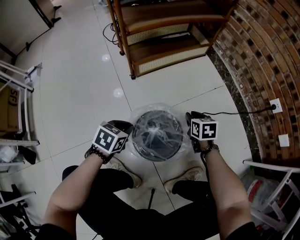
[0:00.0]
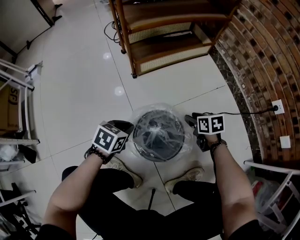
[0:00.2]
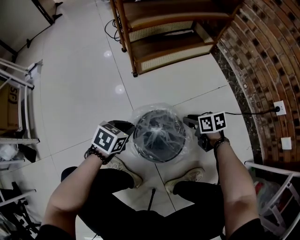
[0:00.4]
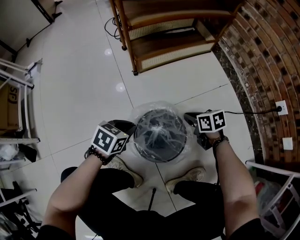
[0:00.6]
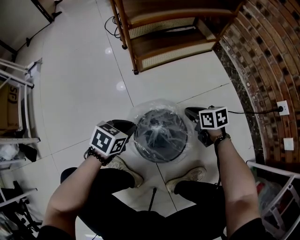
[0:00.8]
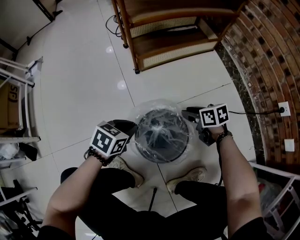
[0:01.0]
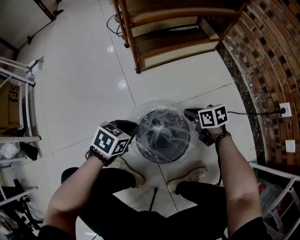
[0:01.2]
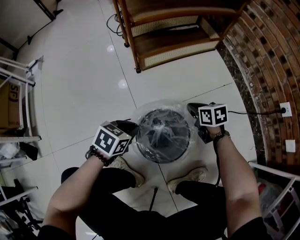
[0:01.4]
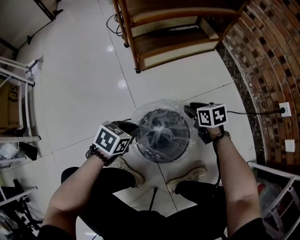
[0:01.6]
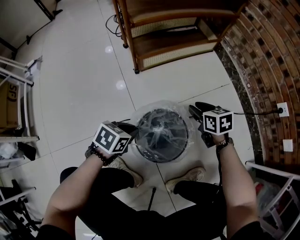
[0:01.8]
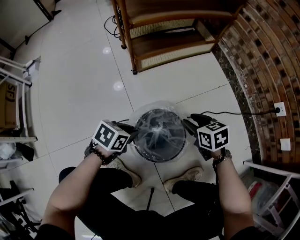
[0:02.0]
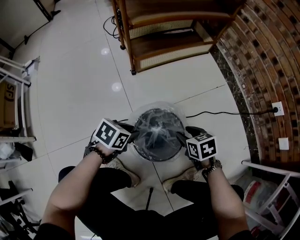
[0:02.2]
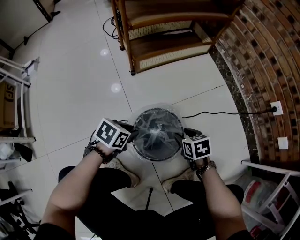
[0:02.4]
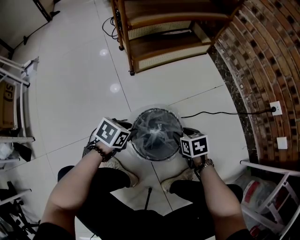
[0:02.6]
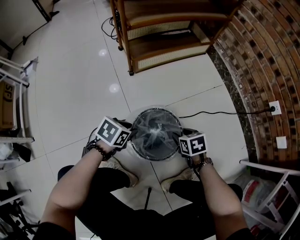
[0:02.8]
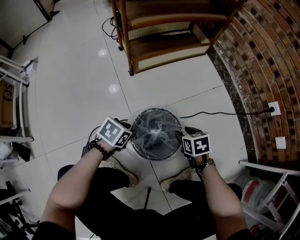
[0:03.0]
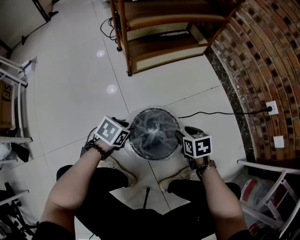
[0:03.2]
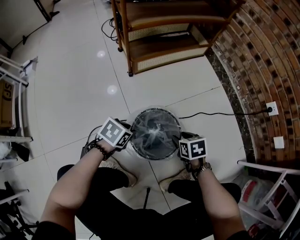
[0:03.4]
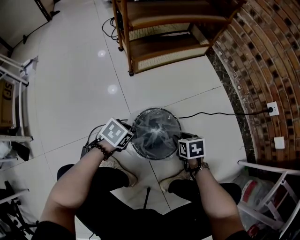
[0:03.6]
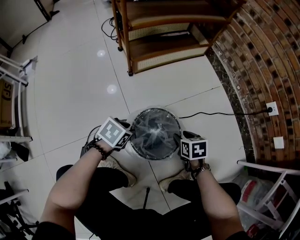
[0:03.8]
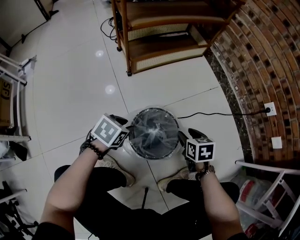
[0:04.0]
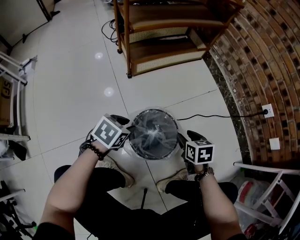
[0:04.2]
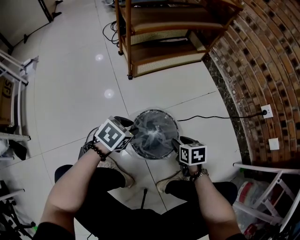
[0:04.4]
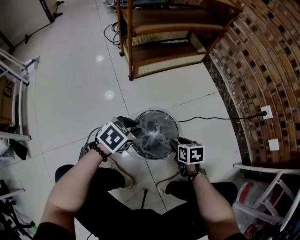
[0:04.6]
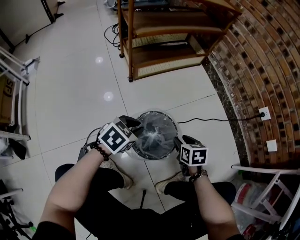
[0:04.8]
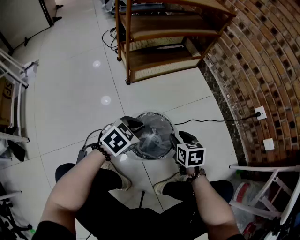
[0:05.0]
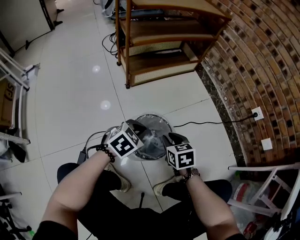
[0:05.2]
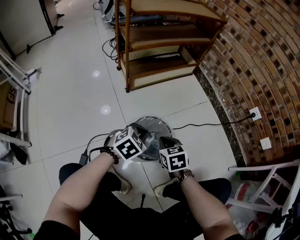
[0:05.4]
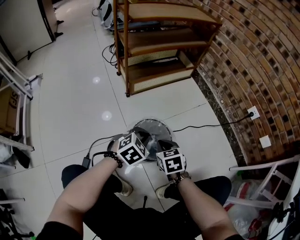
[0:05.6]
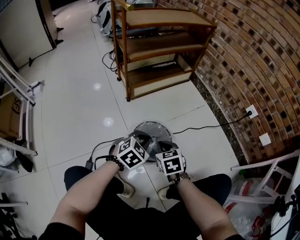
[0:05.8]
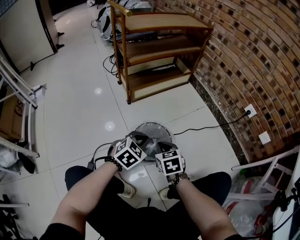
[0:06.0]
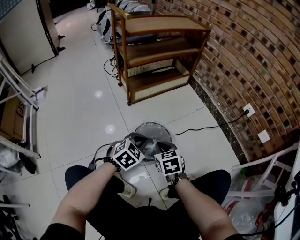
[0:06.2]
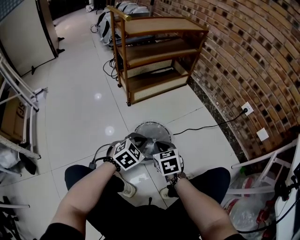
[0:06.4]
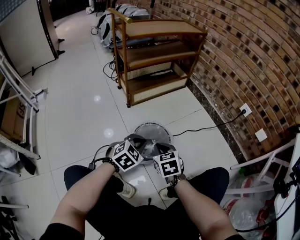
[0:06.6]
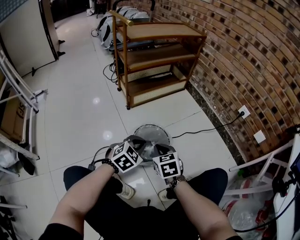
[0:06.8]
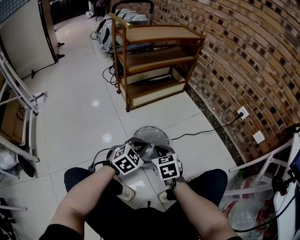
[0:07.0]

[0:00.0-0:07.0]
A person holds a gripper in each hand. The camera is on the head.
0:00.0 to 0:01.4: The right gripper changes place by approximately 5 cm, and opens and closes again.
0:01.4 to 0:02.8: The right gripper travels backward by roughly 10 cm, and opens up.
0:02.8 to 0:04.2: The left gripper changes place by about 5 cm. The right gripper moves up and down over roughly 5 cm, changing direction 2 times.
0:04.2 to 0:05.6: The right gripper travels to the left, backward and upward by approximately 10 cm, and closes up; the left gripper heads to the right, covering some 10 cm, changes its angle by about 30 degrees, and closes its fingers.
0:05.6 to 0:07.0: The right gripper travels upward by approximately 5 cm, while the left gripper goes roughly 5 cm backward.

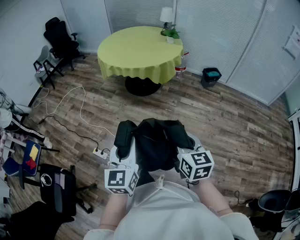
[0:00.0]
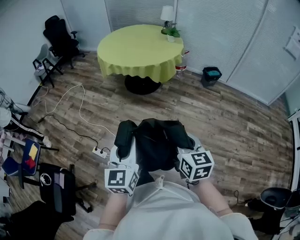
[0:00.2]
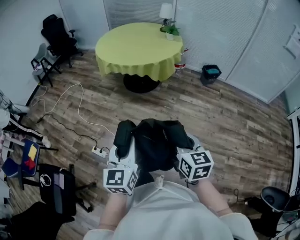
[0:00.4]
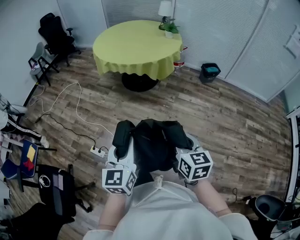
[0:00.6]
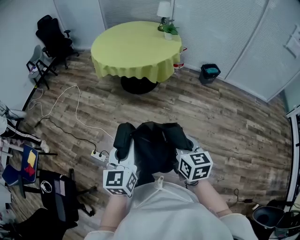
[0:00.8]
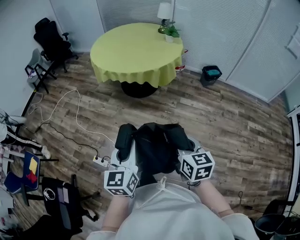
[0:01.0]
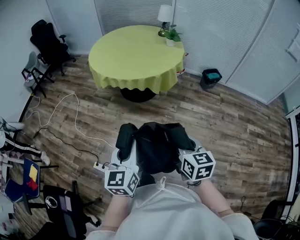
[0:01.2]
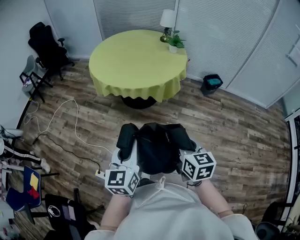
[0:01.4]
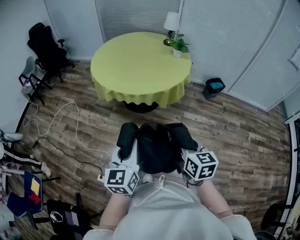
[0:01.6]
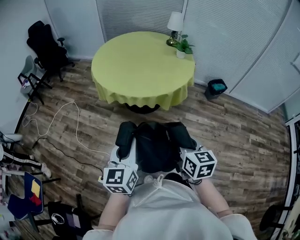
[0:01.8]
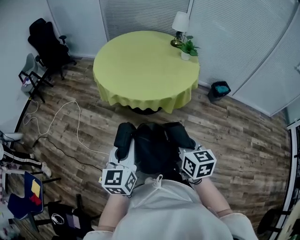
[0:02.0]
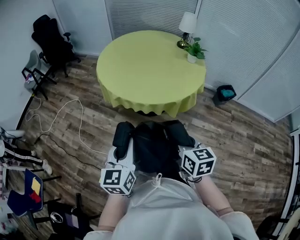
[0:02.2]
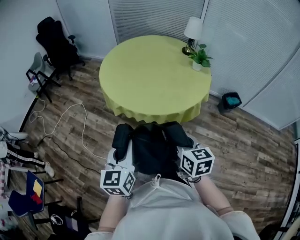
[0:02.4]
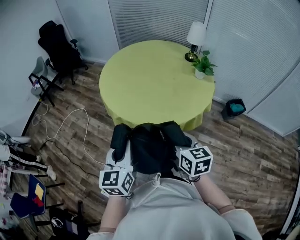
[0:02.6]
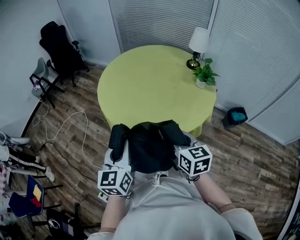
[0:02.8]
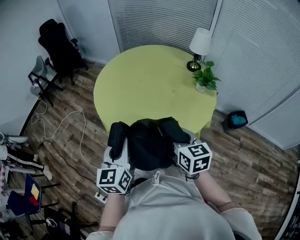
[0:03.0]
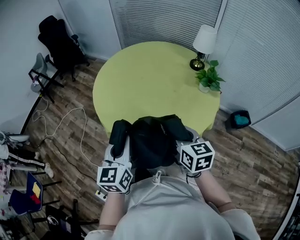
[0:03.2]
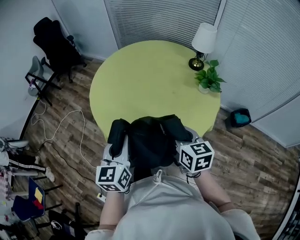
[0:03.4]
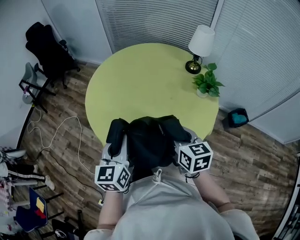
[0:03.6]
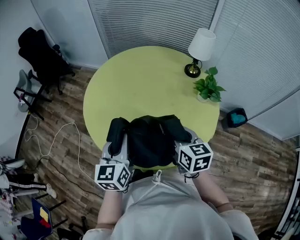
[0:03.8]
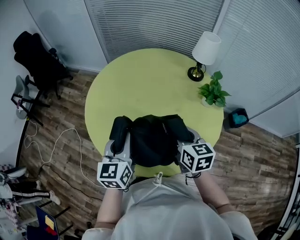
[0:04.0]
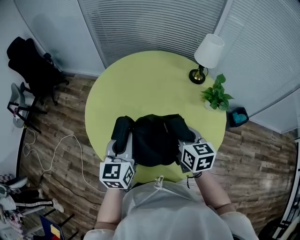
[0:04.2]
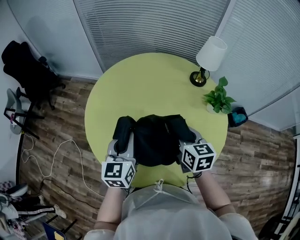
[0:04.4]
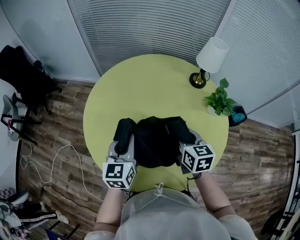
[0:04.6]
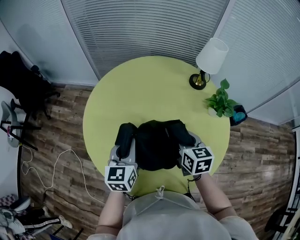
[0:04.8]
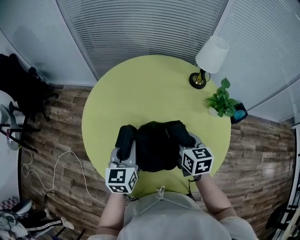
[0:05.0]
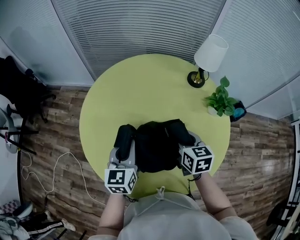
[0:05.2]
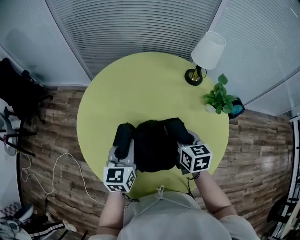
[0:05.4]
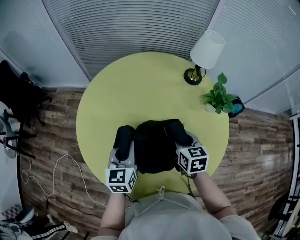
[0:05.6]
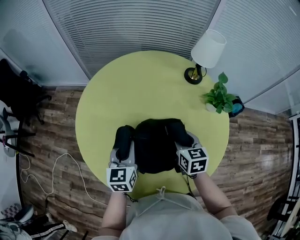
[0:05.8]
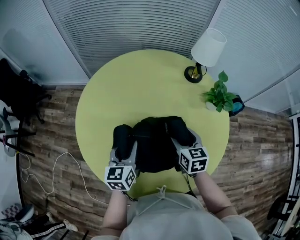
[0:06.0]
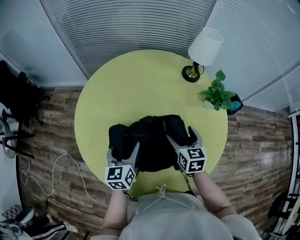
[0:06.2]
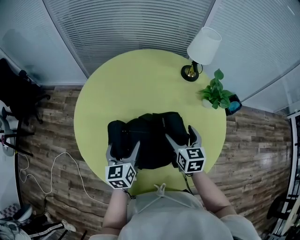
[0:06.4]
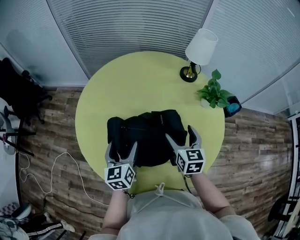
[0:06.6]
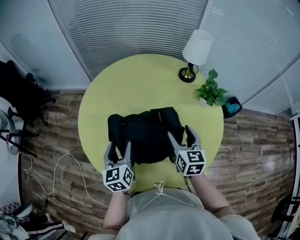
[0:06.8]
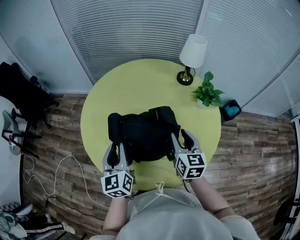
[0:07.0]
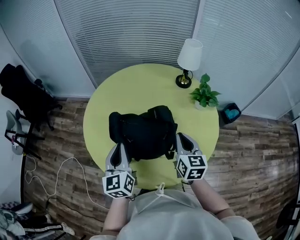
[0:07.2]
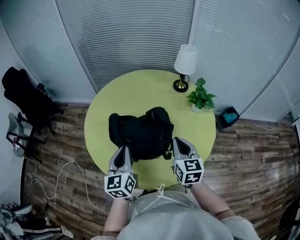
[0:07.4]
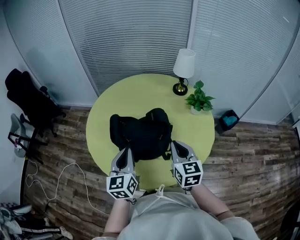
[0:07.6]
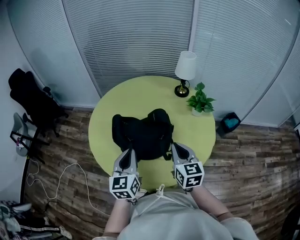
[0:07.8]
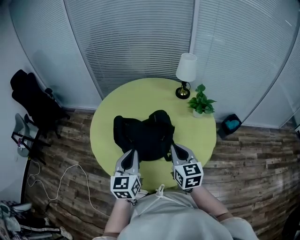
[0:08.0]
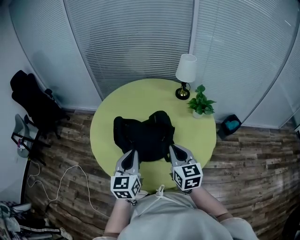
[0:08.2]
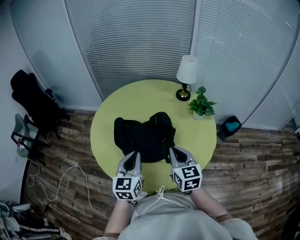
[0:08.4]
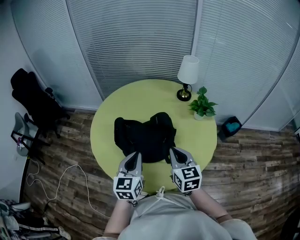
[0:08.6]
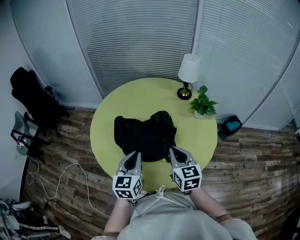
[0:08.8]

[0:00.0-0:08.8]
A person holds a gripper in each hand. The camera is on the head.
0:00.0 to 0:01.4: The grippers both shift forward by about 30 cm.
0:01.4 to 0:03.0: Both grippers are carried forward, roughly 50 cm.
0:03.0 to 0:04.4: The two grippers go about 35 cm forward.
0:04.4 to 0:05.8: The two grippers go roughly 10 cm downward and forward.
0:05.8 to 0:07.4: Both grippers move backward and upward, some 20 cm. The left gripper opens and closes again. Meanwhile the right gripper opens and closes again.
0:07.4 to 0:08.8: The left gripper moves approximately 5 cm.

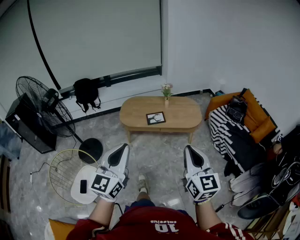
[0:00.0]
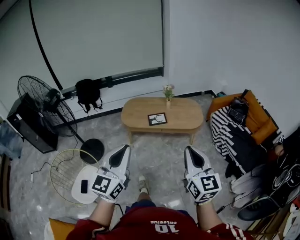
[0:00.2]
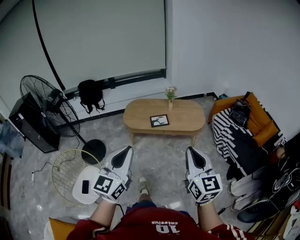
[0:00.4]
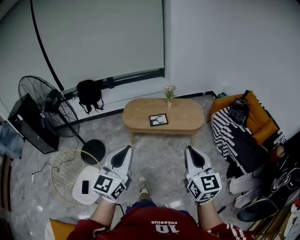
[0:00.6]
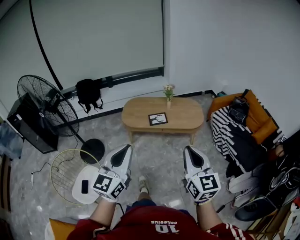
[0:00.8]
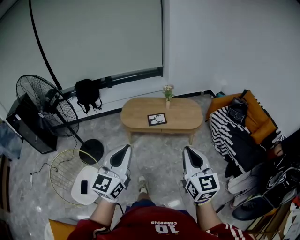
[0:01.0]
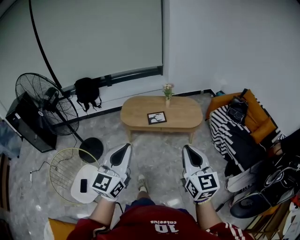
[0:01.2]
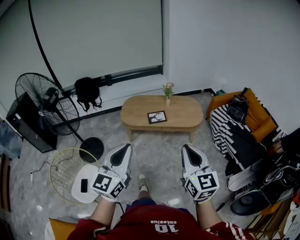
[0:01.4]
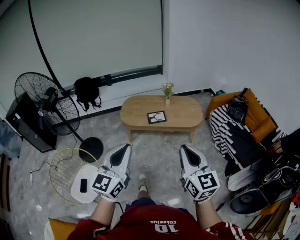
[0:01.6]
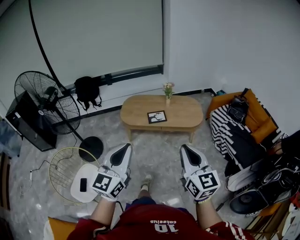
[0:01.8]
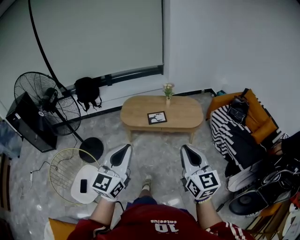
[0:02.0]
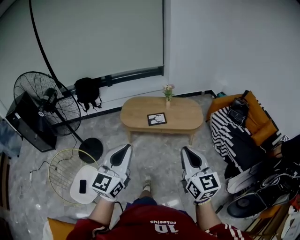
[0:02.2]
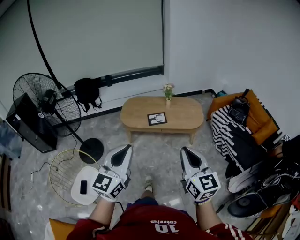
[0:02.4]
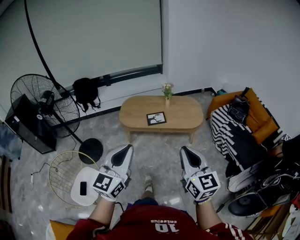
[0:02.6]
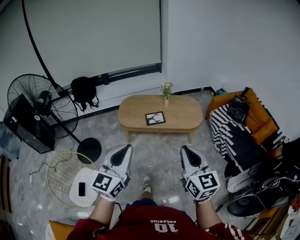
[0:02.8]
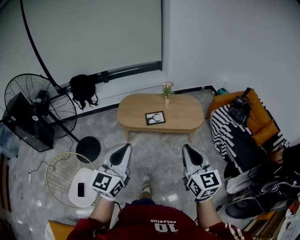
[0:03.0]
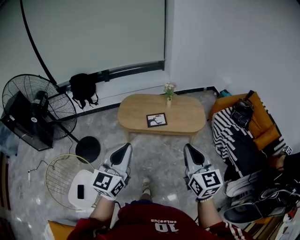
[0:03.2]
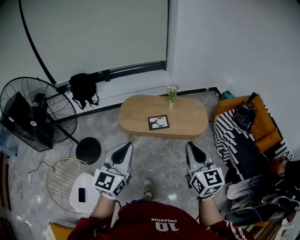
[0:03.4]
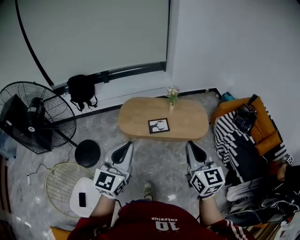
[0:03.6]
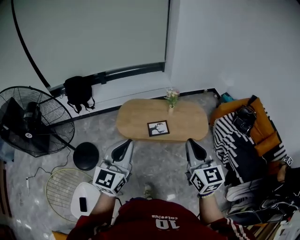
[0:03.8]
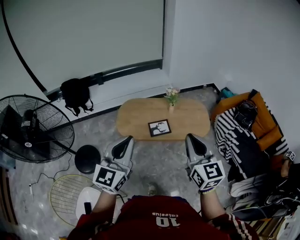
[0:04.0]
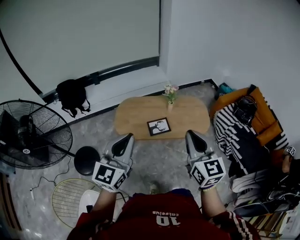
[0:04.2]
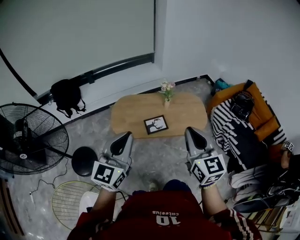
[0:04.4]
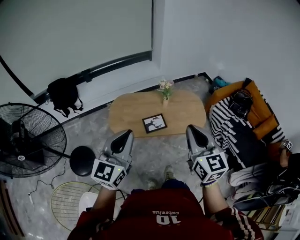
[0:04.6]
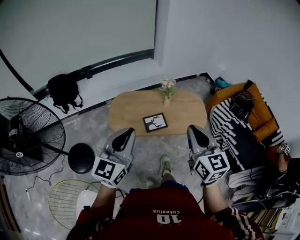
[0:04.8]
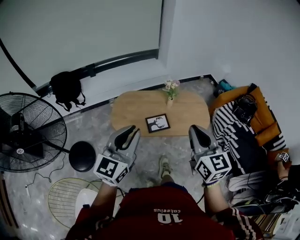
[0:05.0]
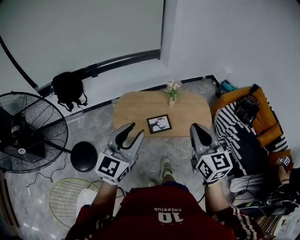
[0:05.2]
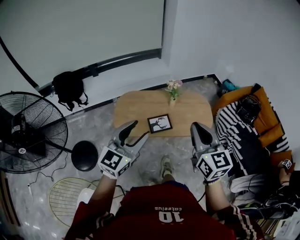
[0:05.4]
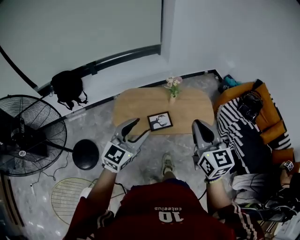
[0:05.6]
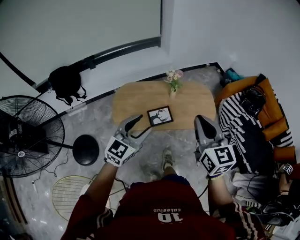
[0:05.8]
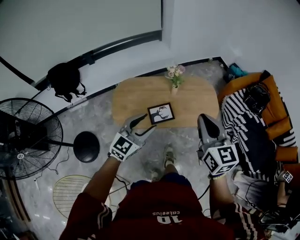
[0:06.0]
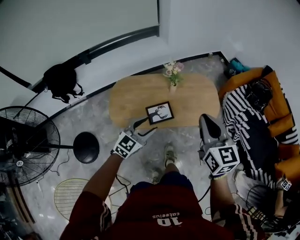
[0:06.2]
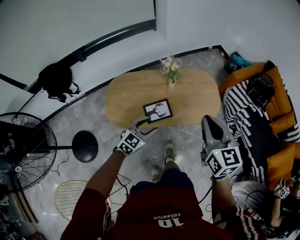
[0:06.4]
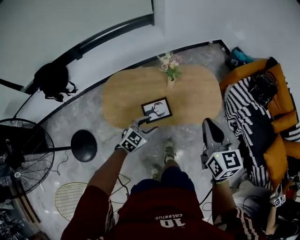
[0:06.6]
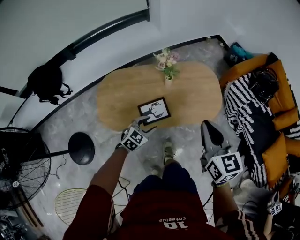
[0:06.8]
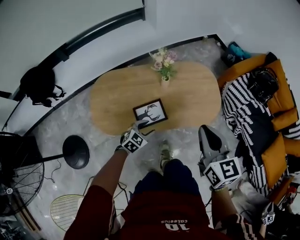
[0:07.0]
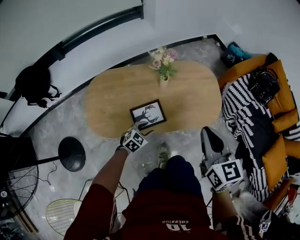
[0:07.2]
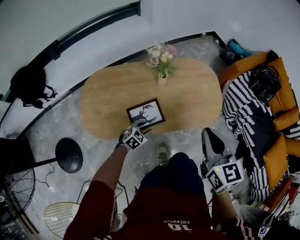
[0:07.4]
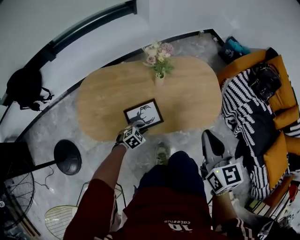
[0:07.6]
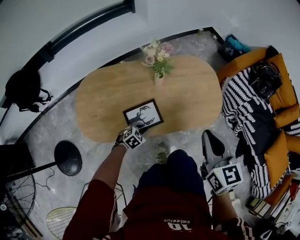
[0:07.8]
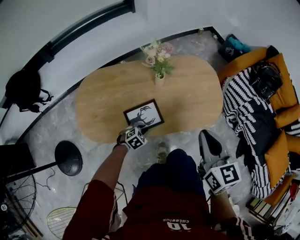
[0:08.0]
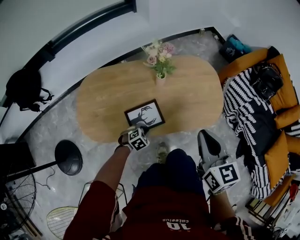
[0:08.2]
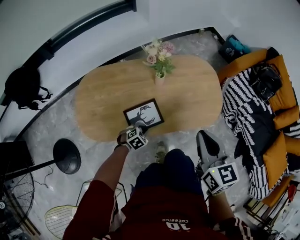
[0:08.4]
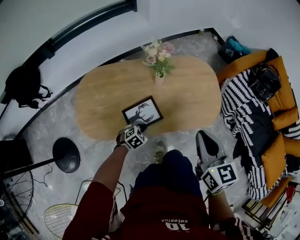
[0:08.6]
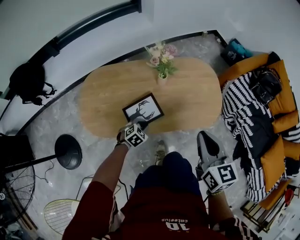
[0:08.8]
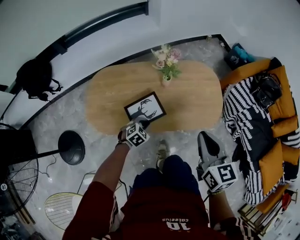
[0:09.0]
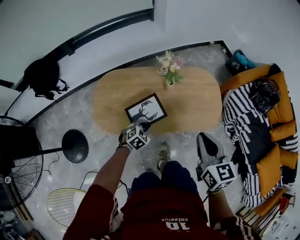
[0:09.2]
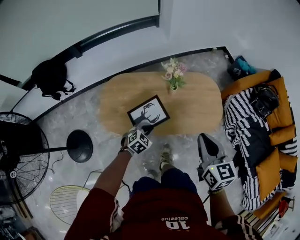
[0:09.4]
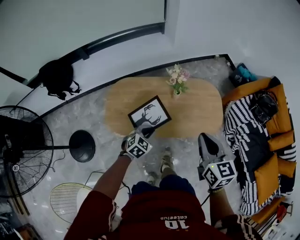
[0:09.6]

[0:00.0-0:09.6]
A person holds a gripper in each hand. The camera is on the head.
0:00.0 to 0:01.6: The grippers move only a little.
0:01.6 to 0:03.2: Both grippers move forward, approximately 15 cm.
0:03.2 to 0:04.8: The left gripper shifts approximately 25 cm forward. Meanwhile the right gripper is displaced forward and to the left by about 25 cm.
0:04.8 to 0:06.4: The left gripper travels downward and forward by about 40 cm, rotates approximately 40 degrees, and opens. The right gripper is displaced forward and downward by about 20 cm.
0:06.4 to 0:08.0: The right gripper moves downward, roughly 20 cm. The left gripper travels downward by about 40 cm, points its fingers about 30 degrees further downward, and closes up.
0:08.0 to 0:09.6: The left gripper shifts approximately 30 cm upward, and rotates some 20 degrees. The right gripper heads upward, covering roughly 15 cm.
